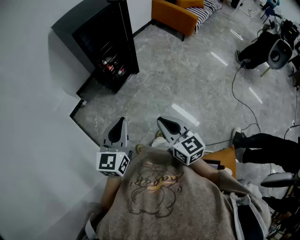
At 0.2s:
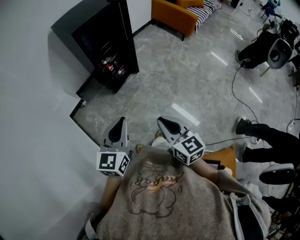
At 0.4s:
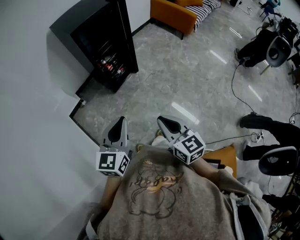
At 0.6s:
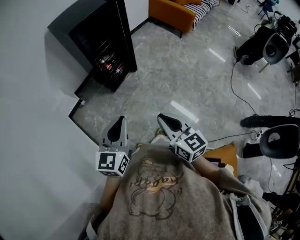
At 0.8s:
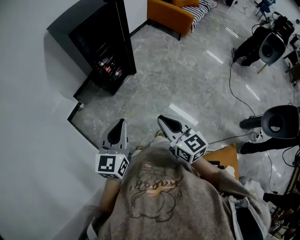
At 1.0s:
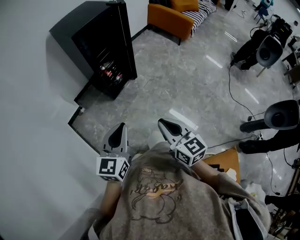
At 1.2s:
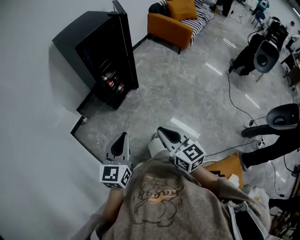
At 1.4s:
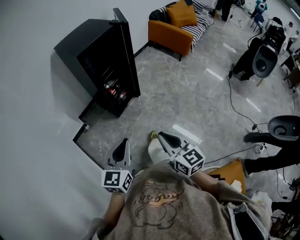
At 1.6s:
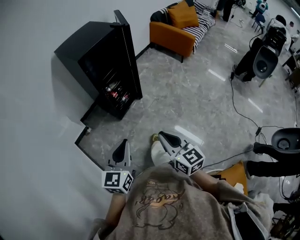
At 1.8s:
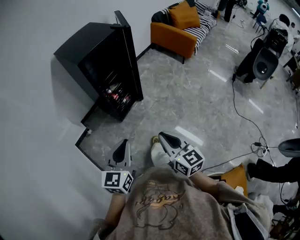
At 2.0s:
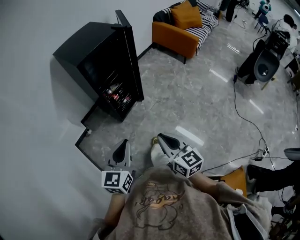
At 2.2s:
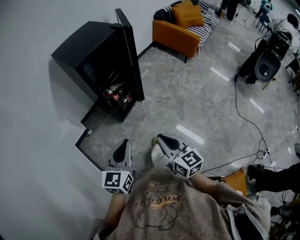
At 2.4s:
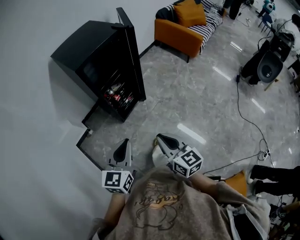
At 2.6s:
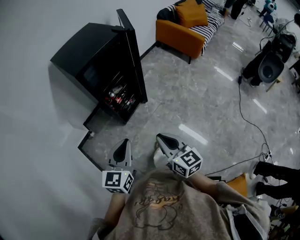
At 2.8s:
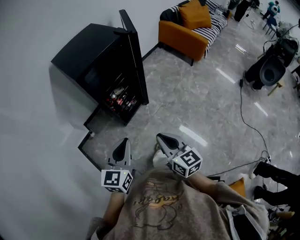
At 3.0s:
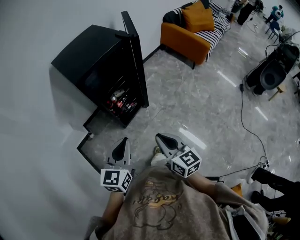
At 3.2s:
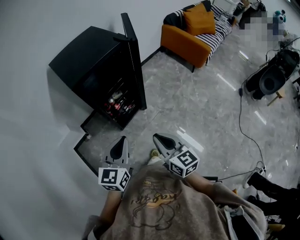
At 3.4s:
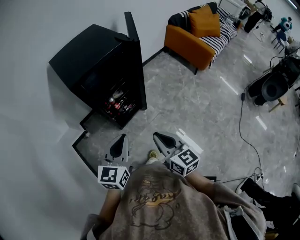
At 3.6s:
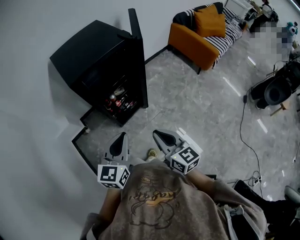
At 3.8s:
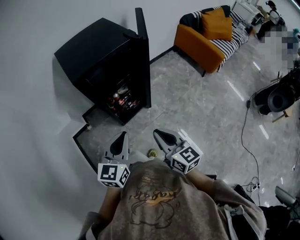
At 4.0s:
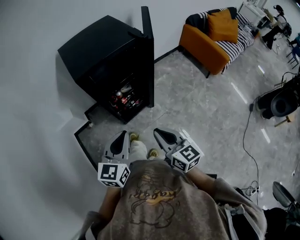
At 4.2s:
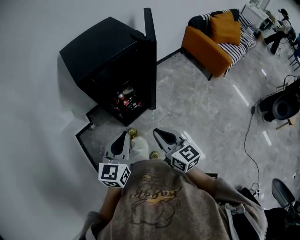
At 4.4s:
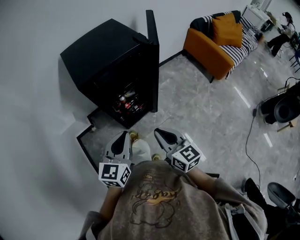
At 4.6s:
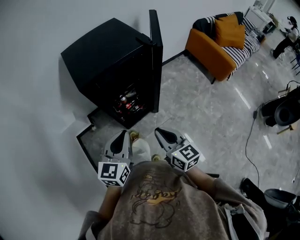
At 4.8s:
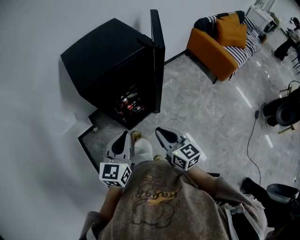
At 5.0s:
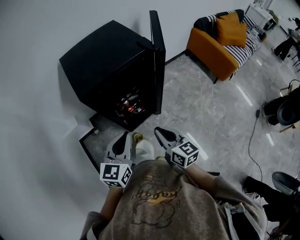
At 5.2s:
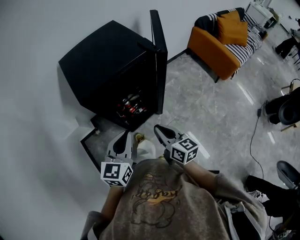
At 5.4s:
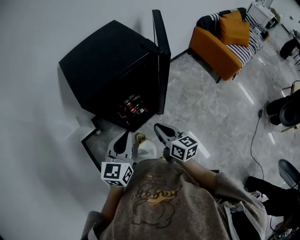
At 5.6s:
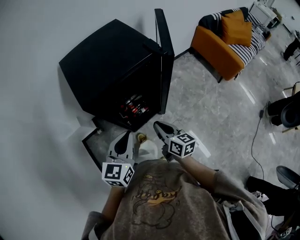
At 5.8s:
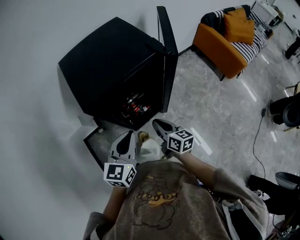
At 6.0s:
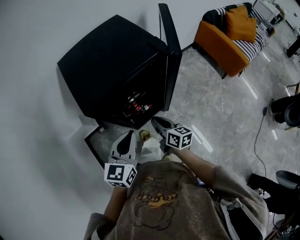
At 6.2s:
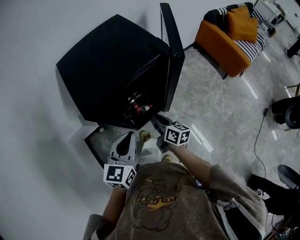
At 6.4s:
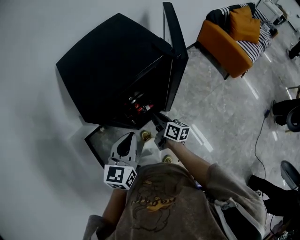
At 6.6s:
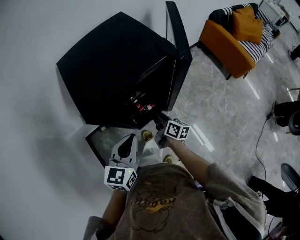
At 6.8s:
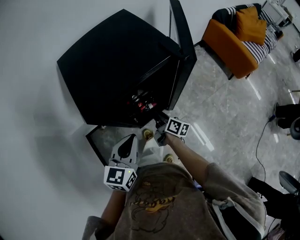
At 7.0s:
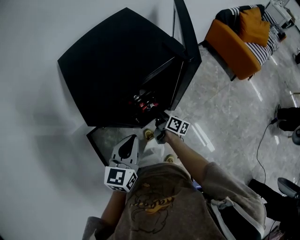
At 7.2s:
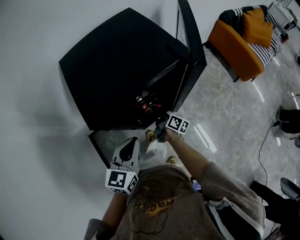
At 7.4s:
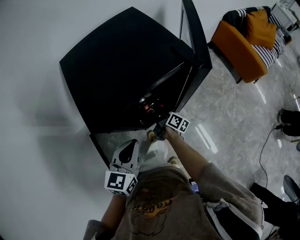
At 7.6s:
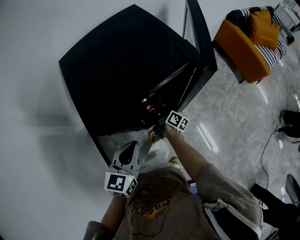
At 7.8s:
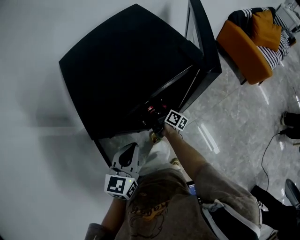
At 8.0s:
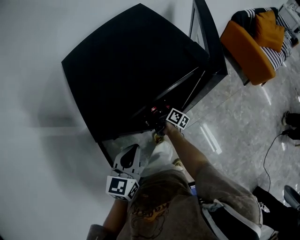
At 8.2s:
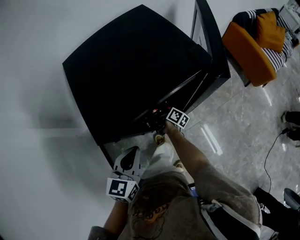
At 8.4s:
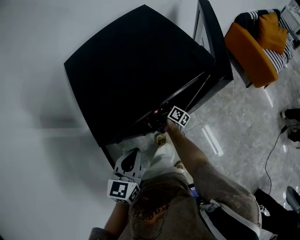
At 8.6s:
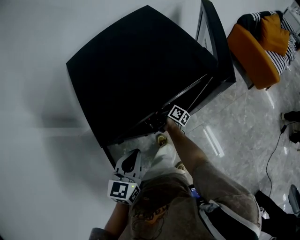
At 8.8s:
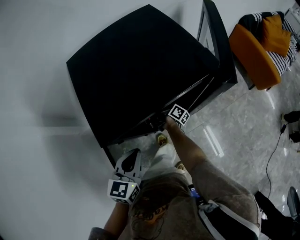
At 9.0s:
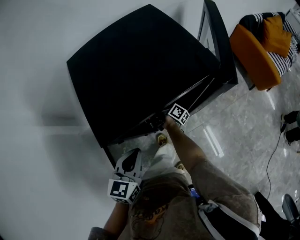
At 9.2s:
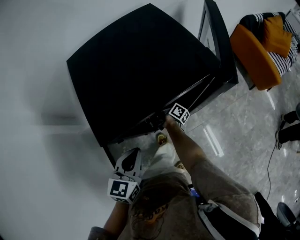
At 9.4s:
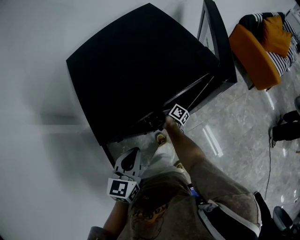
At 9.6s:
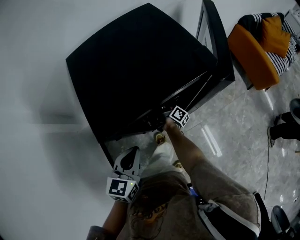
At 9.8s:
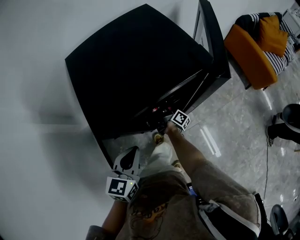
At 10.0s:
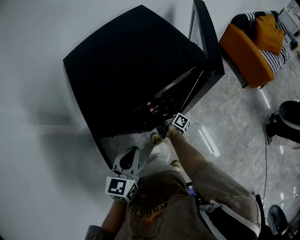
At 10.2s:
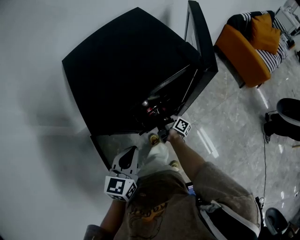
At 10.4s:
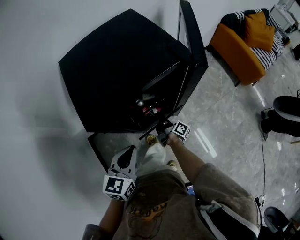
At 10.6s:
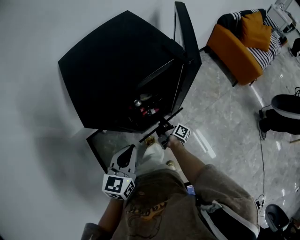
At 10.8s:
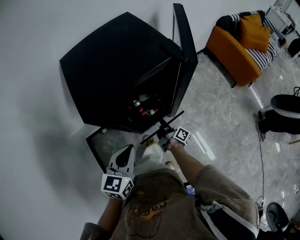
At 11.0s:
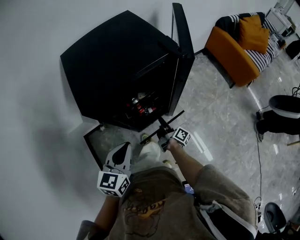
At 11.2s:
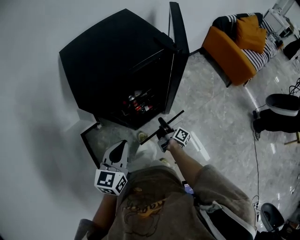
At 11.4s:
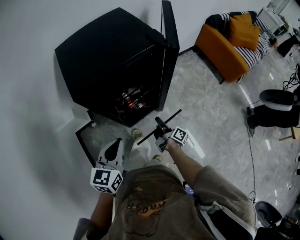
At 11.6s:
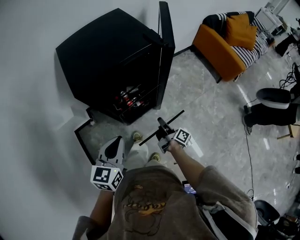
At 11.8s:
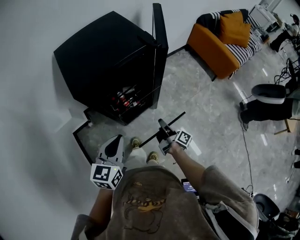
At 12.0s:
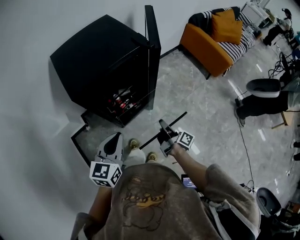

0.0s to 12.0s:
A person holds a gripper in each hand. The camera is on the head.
0.0s to 1.6s: Both grippers travel together forward, some 5 cm.
1.6s to 3.0s: Both grippers move forward, some 20 cm.
3.0s to 4.4s: Both grippers move forward, roughly 10 cm.
4.4s to 6.0s: The left gripper travels forward by roughly 10 cm, while the right gripper is displaced forward and downward by roughly 20 cm, and rotates about 30 degrees.
6.0s to 7.6s: The left gripper goes approximately 5 cm downward. The right gripper shifts roughly 20 cm forward and downward, and swivels roughly 40 degrees.
7.6s to 9.0s: The right gripper travels forward by approximately 10 cm.
9.0s to 10.4s: The right gripper travels backward and to the right by about 15 cm. Meanwhile the left gripper moves roughly 5 cm.
10.4s to 12.0s: The left gripper is displaced backward, upward and to the right by some 10 cm. The right gripper moves backward, upward and to the right, approximately 25 cm.

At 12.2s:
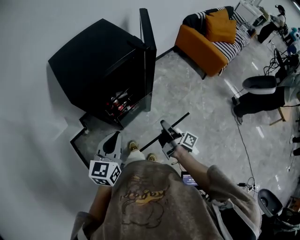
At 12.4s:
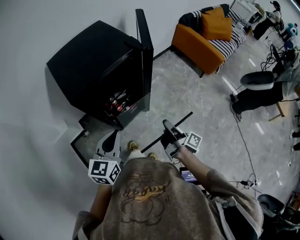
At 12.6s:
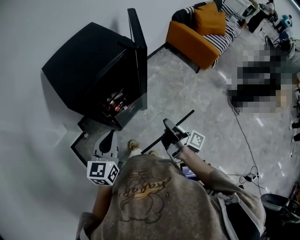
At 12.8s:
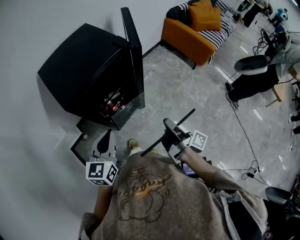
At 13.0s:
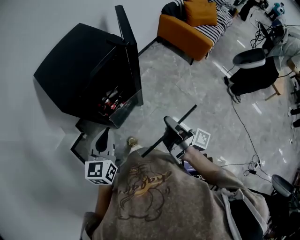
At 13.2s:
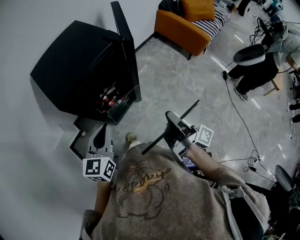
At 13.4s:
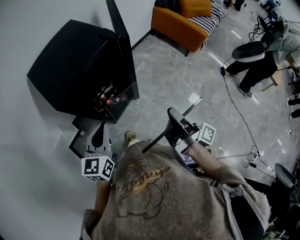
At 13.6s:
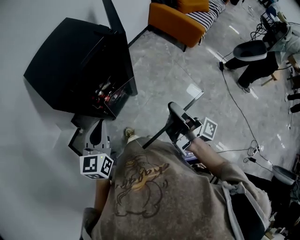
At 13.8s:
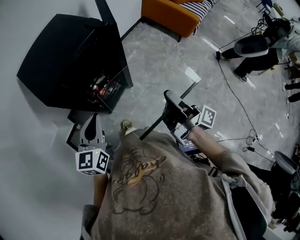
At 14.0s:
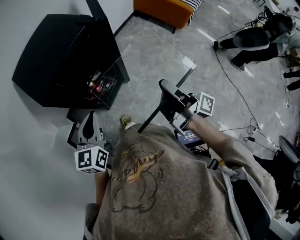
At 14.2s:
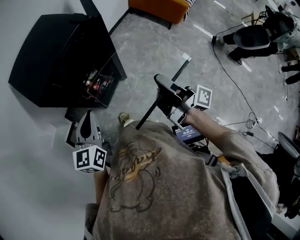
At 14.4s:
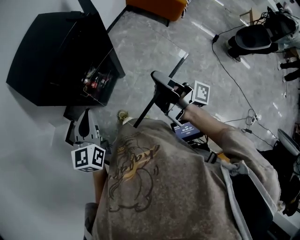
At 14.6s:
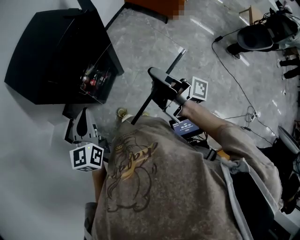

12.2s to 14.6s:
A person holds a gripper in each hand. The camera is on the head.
12.2s to 13.4s: The right gripper moves upward, some 15 cm.
13.4s to 14.6s: The grippers stay close to where they were, moving slightly.

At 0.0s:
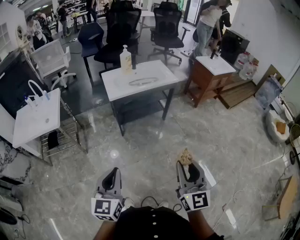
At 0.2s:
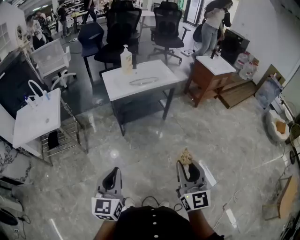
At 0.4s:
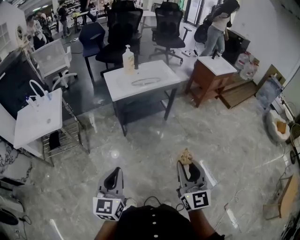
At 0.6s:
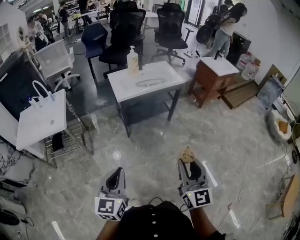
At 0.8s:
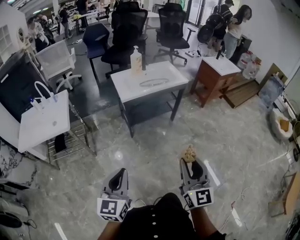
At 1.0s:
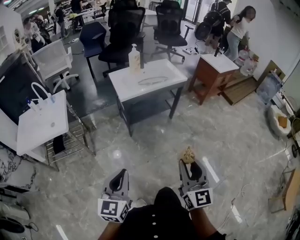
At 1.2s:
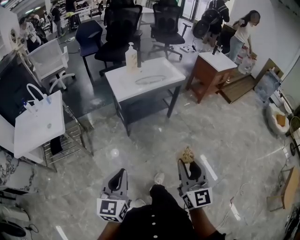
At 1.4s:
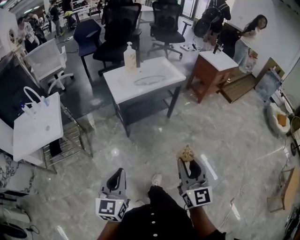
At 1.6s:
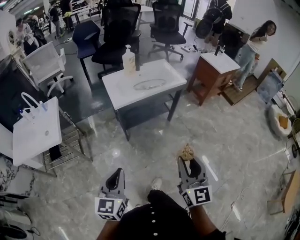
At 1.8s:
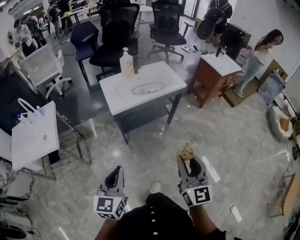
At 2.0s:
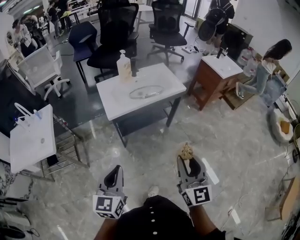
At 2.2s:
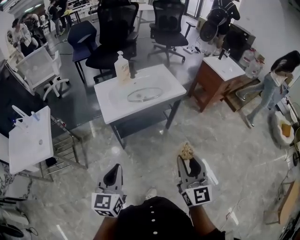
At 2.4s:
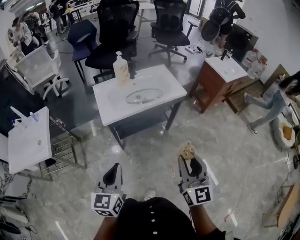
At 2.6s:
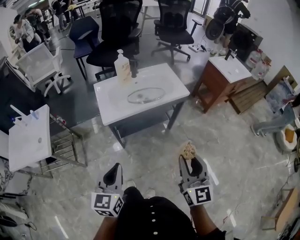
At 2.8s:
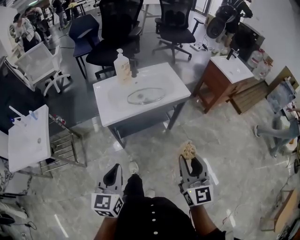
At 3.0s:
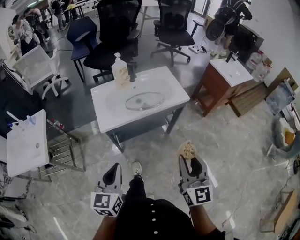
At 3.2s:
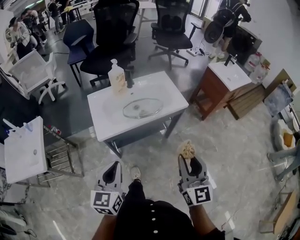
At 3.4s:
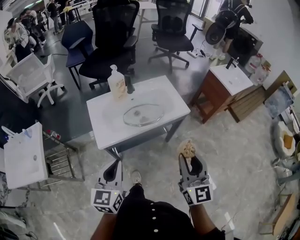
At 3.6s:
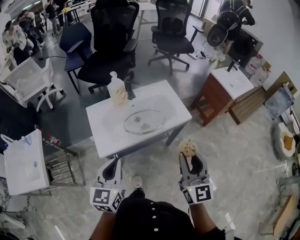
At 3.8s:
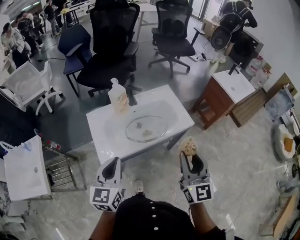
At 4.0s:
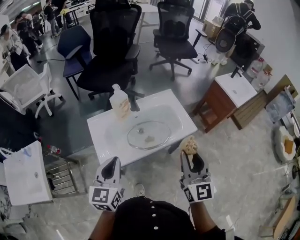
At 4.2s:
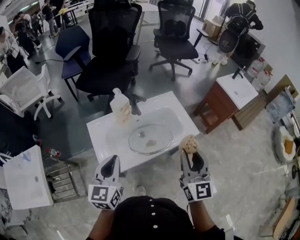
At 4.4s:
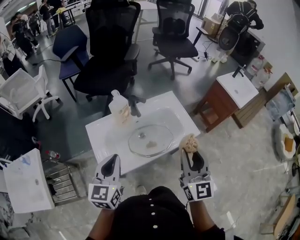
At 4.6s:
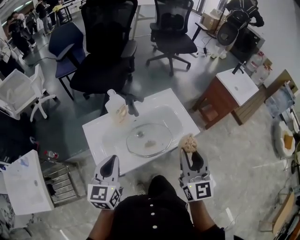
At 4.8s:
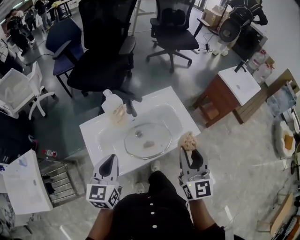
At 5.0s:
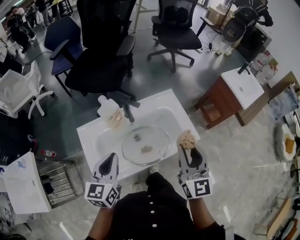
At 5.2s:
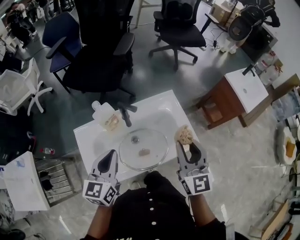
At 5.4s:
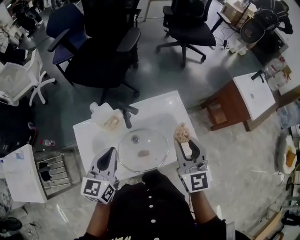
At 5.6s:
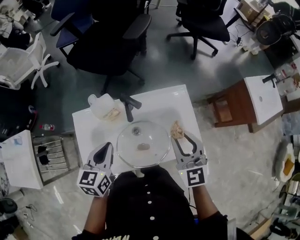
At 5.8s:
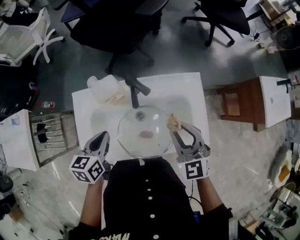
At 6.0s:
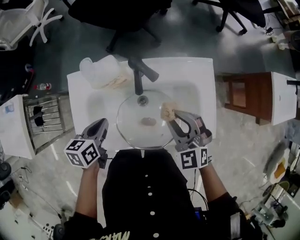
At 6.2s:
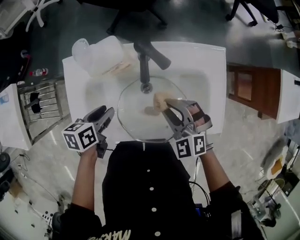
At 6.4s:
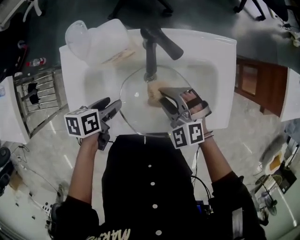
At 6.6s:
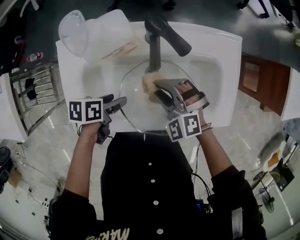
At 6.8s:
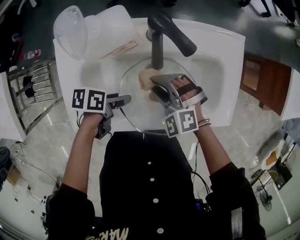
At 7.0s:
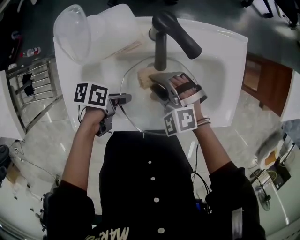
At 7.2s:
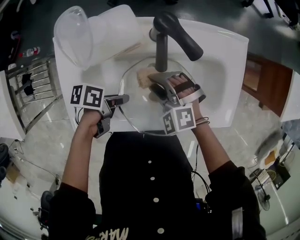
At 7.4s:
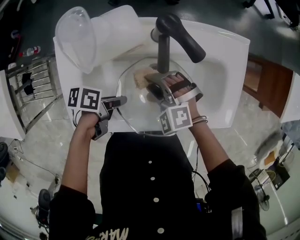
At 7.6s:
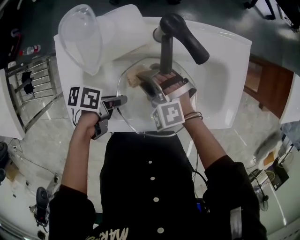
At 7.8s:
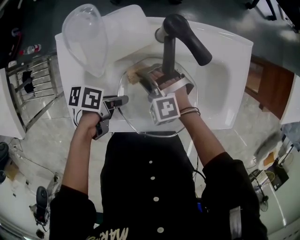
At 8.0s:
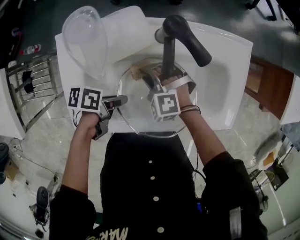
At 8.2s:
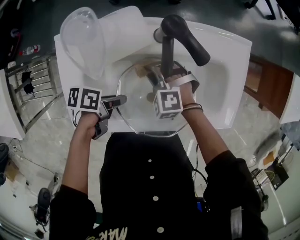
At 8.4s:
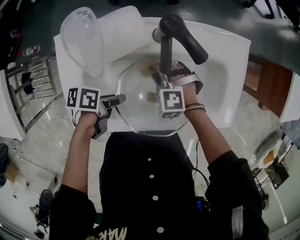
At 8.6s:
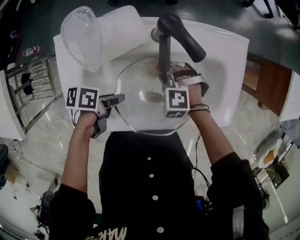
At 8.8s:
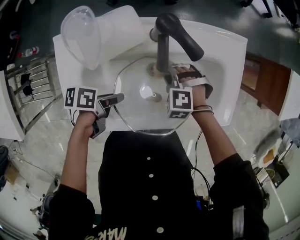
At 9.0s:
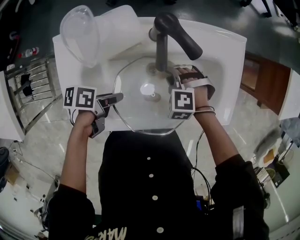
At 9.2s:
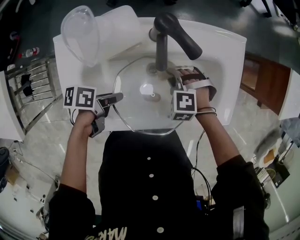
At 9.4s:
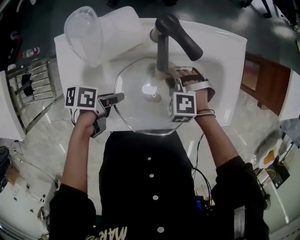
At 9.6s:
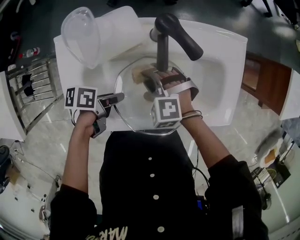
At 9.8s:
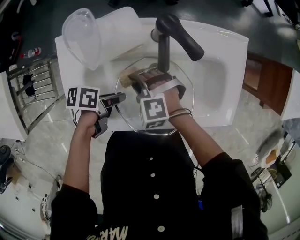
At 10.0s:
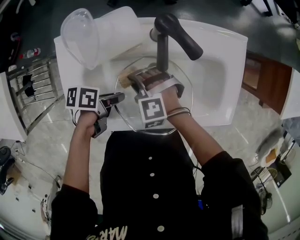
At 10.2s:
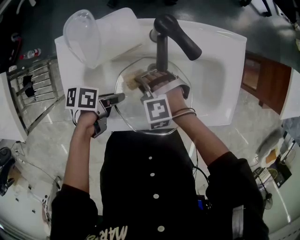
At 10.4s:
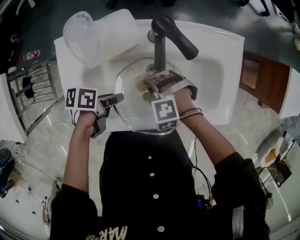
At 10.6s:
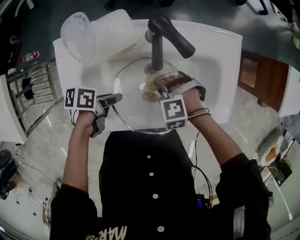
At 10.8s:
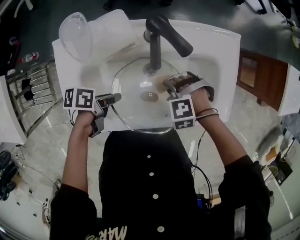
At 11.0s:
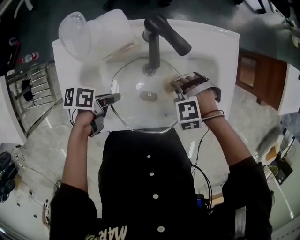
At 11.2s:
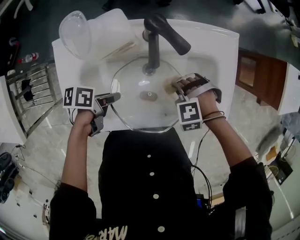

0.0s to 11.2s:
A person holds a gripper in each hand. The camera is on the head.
0.0s to 1.6s: Both grippers move forward and to the left, approximately 15 cm.
1.6s to 3.2s: The grippers both shift forward by roughly 30 cm.
3.2s to 4.8s: The grippers both shift forward by some 30 cm.
4.8s to 6.4s: The left gripper is displaced downward by approximately 30 cm, angles its fingers downward, by approximately 30 degrees, and opens its fingers. Meanwhile the right gripper travels downward and forward by some 35 cm, and tilts its fingers approximately 40 degrees downward.
6.4s to 8.0s: The left gripper ends up roughly 5 cm from where it was, swivels approximately 30 degrees, and closes up, while the right gripper heads downward, covering about 10 cm.
9.6s to 11.2s: The right gripper shifts by about 15 cm, and turns by approximately 30 degrees.
